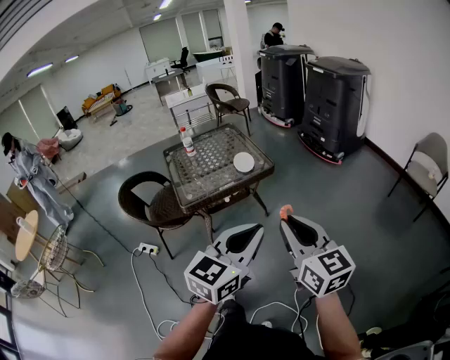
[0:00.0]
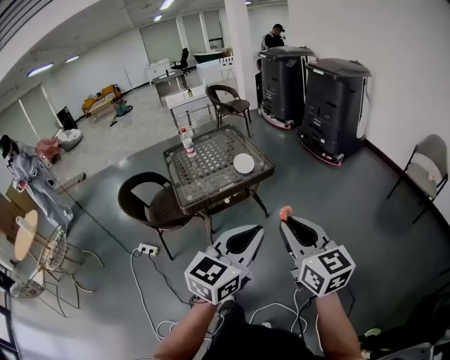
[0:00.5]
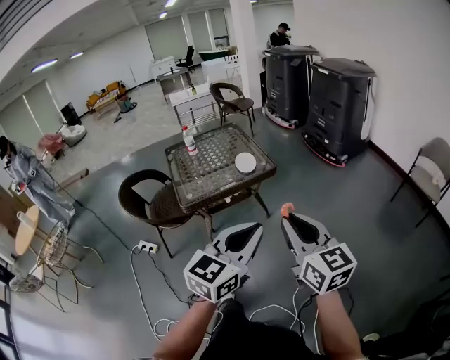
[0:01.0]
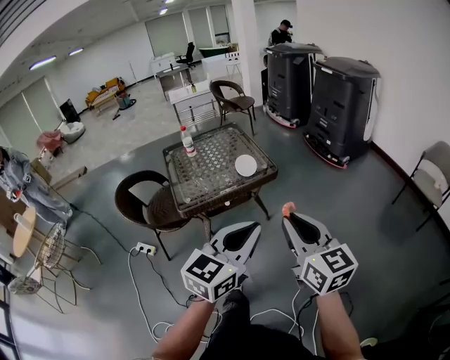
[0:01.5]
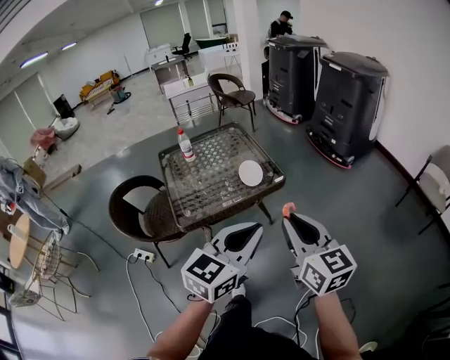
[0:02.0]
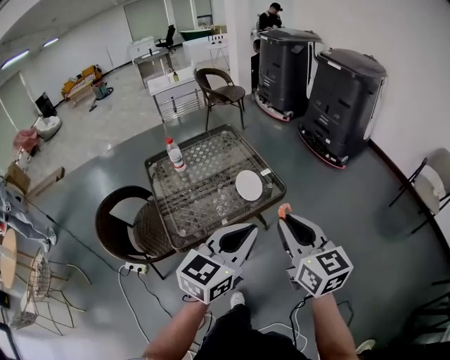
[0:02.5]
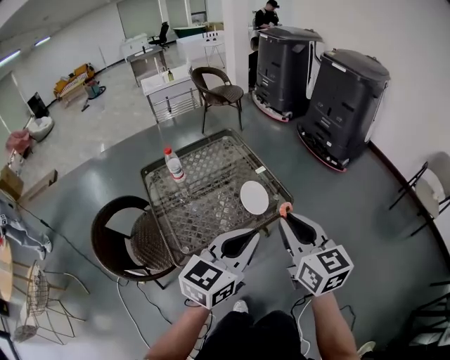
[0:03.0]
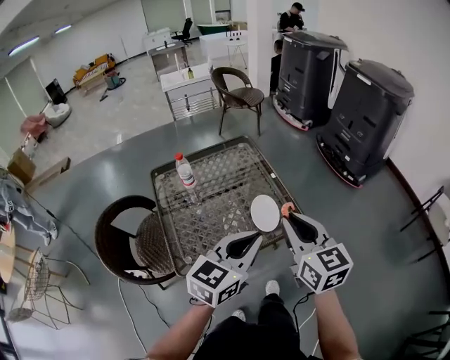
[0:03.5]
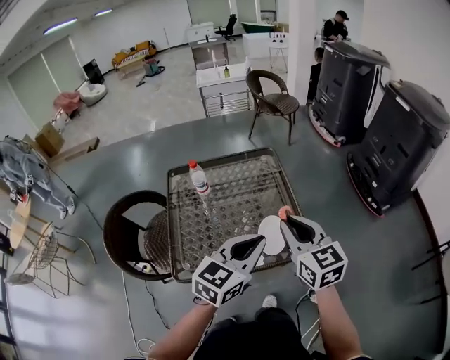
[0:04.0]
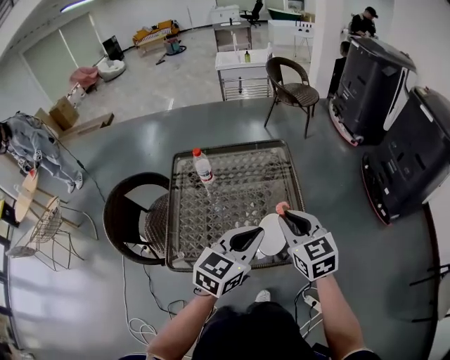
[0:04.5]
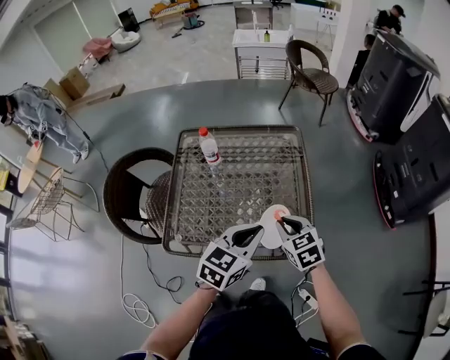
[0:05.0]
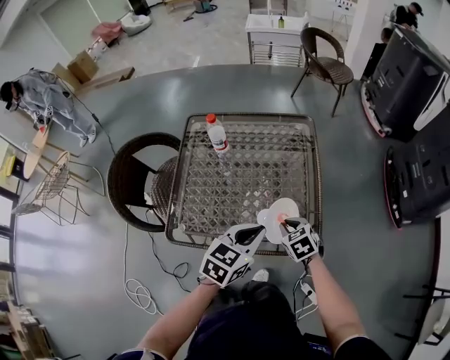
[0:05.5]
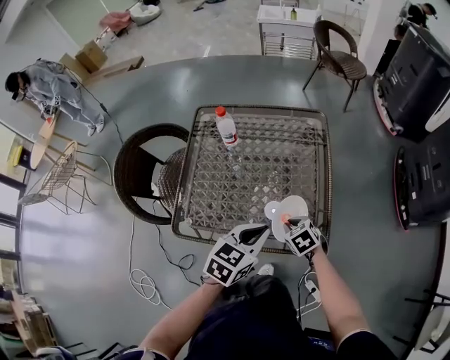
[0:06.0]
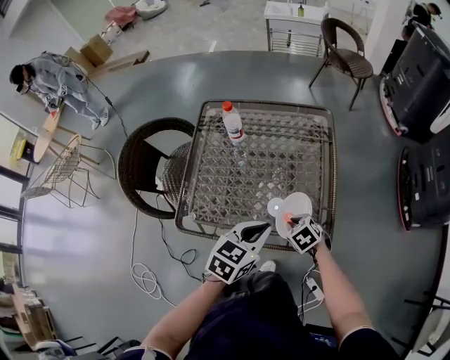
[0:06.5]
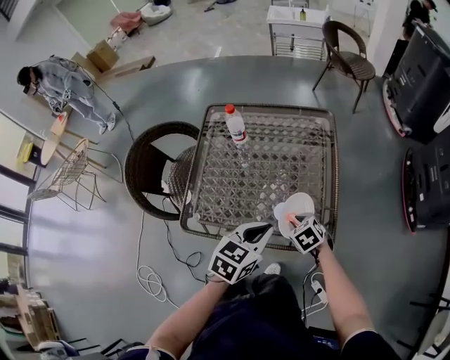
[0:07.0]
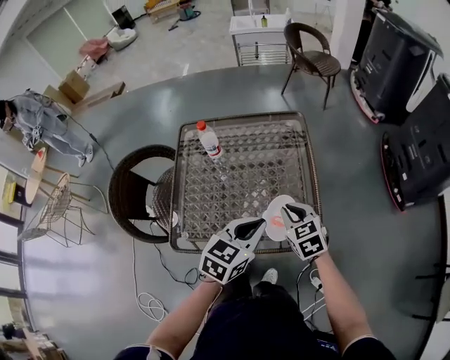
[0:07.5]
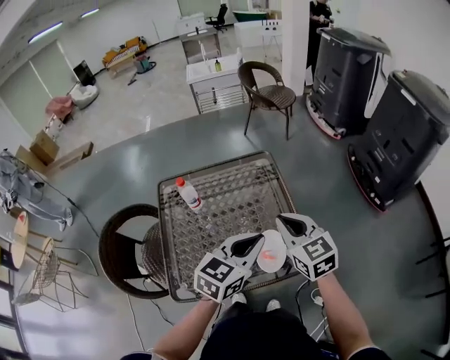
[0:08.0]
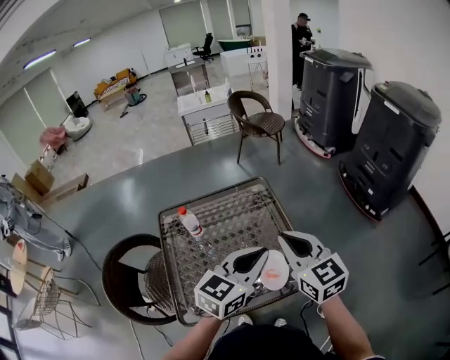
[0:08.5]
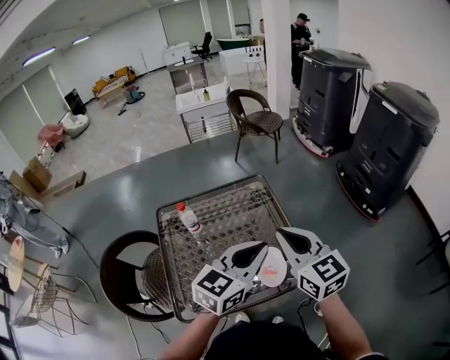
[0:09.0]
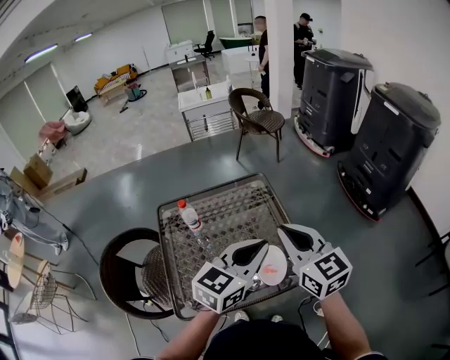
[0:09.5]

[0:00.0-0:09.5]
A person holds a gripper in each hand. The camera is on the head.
0:00.0 to 0:02.0: Both grippers move forward, approximately 15 cm.
0:02.0 to 0:04.0: Both grippers move forward, roughly 35 cm. The right gripper rotates some 20 degrees.
0:04.0 to 0:05.5: The left gripper shifts approximately 15 cm downward, and turns by some 20 degrees; the right gripper travels downward by approximately 30 cm, and points its fingers some 40 degrees further downward.
0:05.5 to 0:07.5: The right gripper goes approximately 10 cm upward.
0:07.5 to 0:09.5: The left gripper is displaced upward by some 15 cm, and swivels about 30 degrees; the right gripper goes roughly 25 cm upward, and tips its fingers upward by approximately 30 degrees.

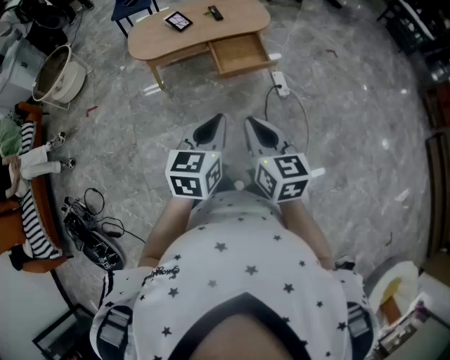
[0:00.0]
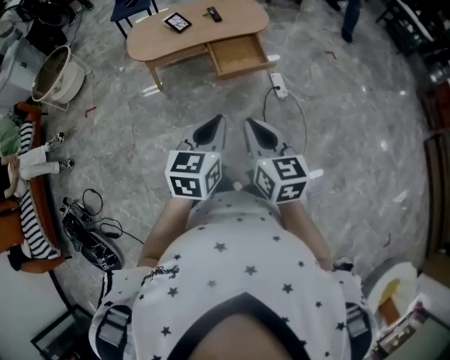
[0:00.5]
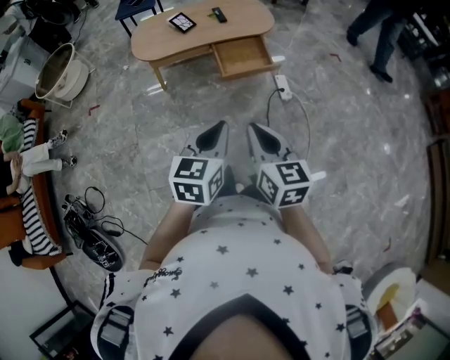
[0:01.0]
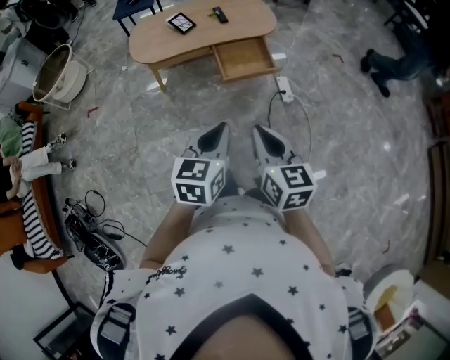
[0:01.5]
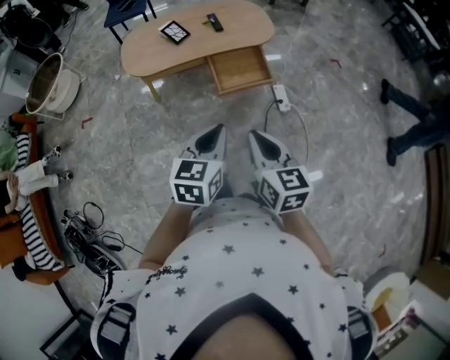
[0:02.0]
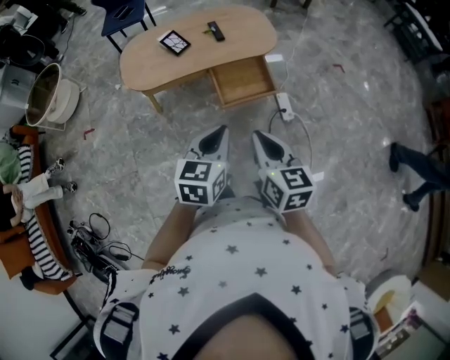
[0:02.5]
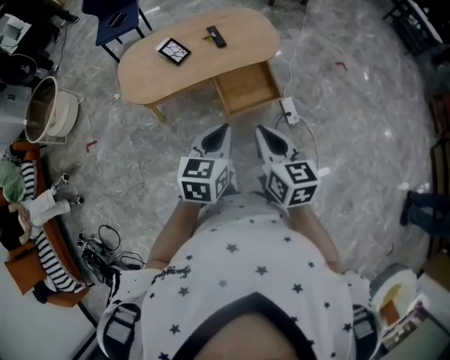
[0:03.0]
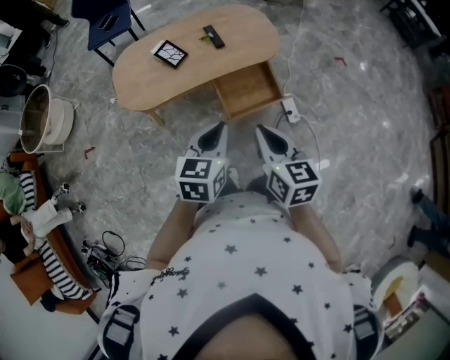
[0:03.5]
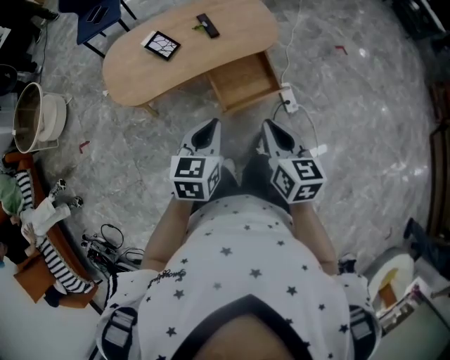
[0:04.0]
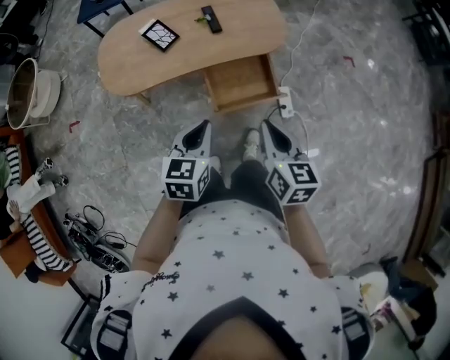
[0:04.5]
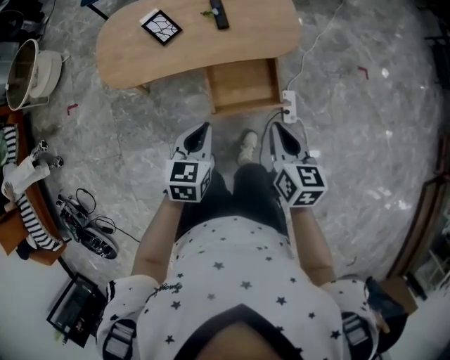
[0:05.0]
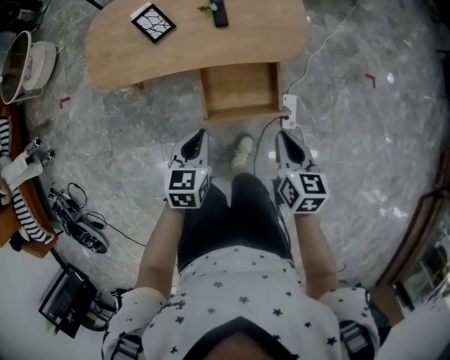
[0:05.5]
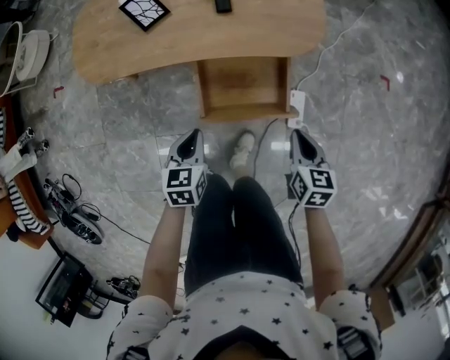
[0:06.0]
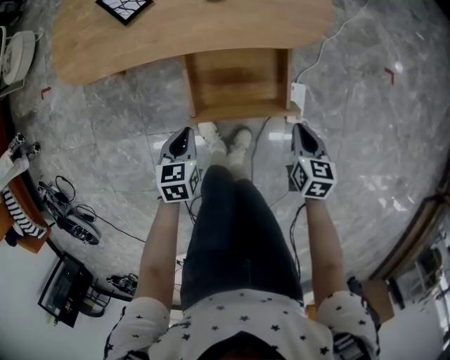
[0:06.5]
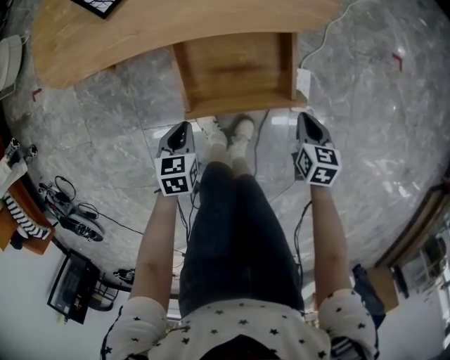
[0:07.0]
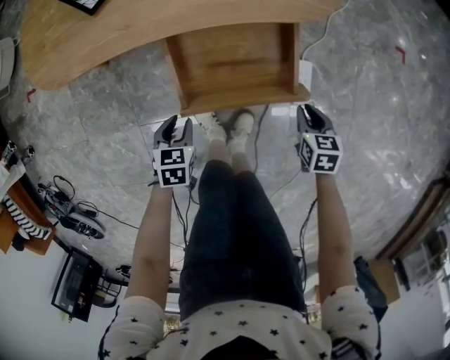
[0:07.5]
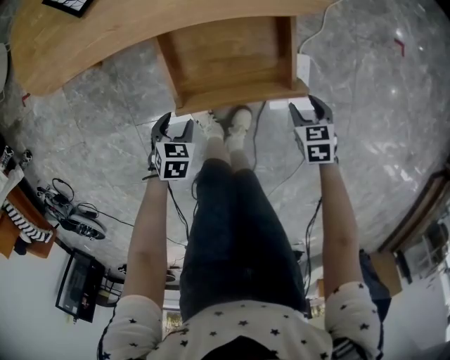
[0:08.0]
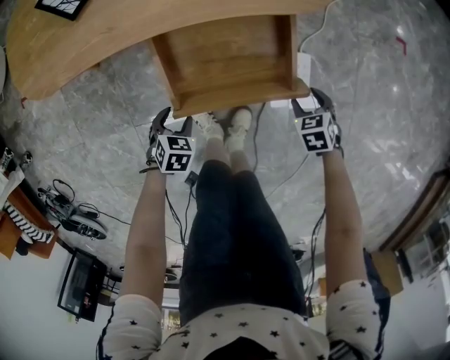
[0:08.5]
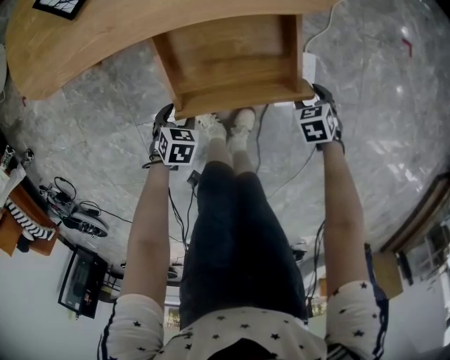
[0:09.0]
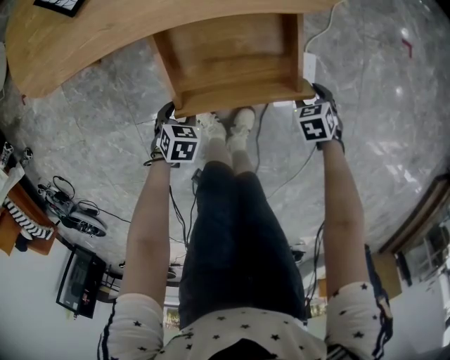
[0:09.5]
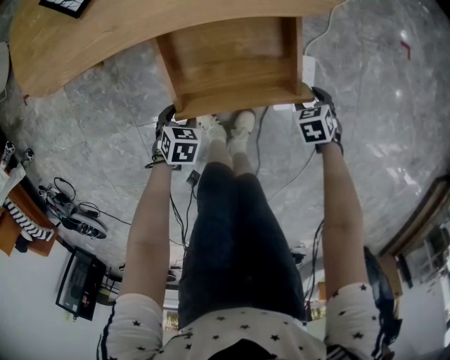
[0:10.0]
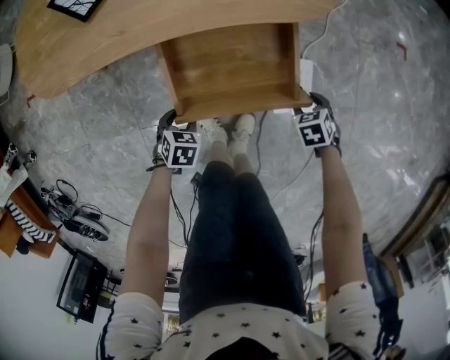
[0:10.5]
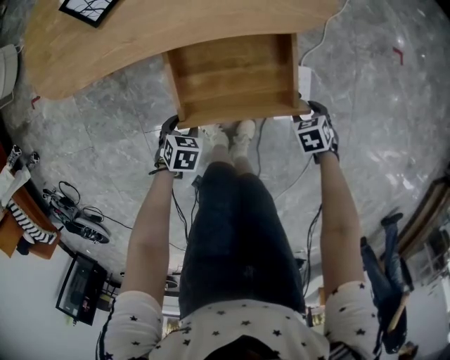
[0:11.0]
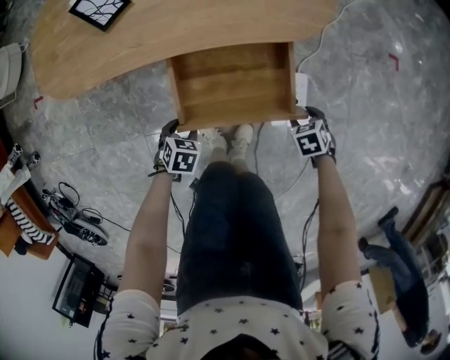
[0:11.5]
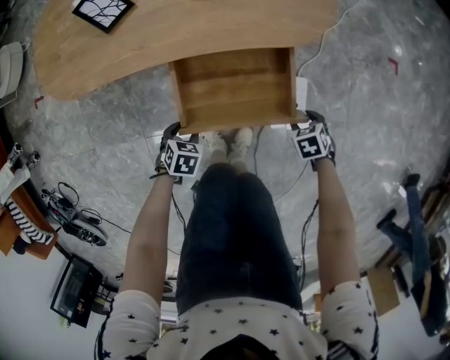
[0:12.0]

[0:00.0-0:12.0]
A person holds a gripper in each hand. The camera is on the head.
0:00.0 to 0:02.0: Both grippers move forward, approximately 15 cm.
0:02.0 to 0:04.0: Both grippers travel together forward, about 25 cm.
0:04.0 to 0:06.0: The right gripper goes about 40 cm downward, to the right and forward, and rotates approximately 20 degrees; the left gripper moves downward, some 30 cm, and turns by about 30 degrees.
0:06.0 to 0:08.0: Both grippers move downward, roughly 25 cm. The right gripper swivels some 30 degrees, and opens its fingers, while the left gripper swivels about 30 degrees, and opens.
0:08.0 to 0:10.0: The right gripper shifts roughly 5 cm downward.
0:10.0 to 0:12.0: Both grippers move upward, about 5 cm.

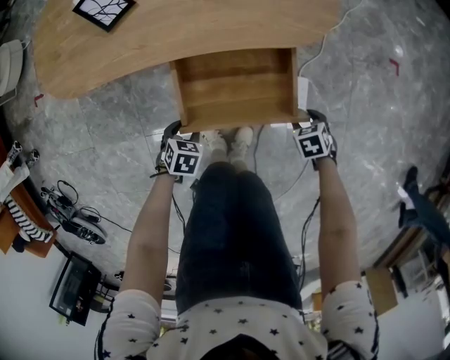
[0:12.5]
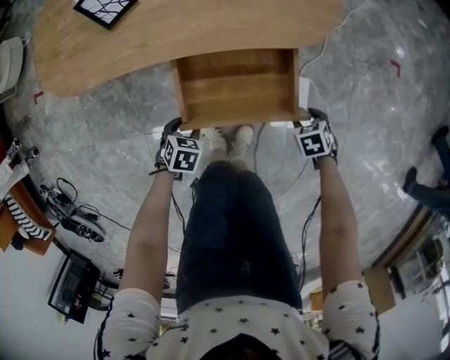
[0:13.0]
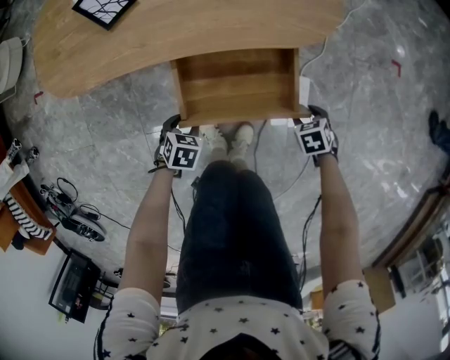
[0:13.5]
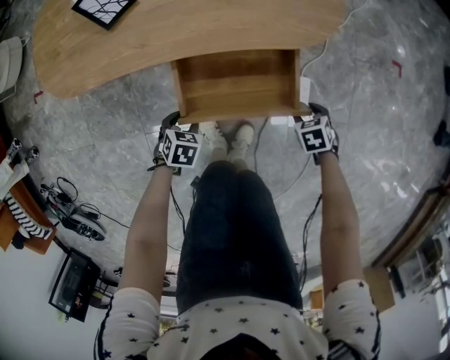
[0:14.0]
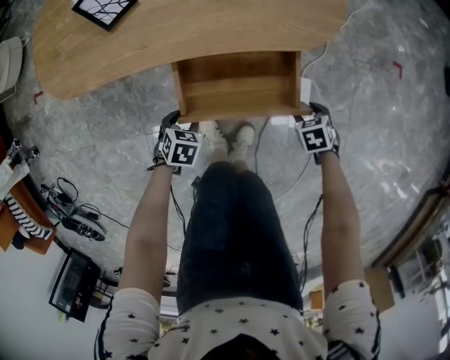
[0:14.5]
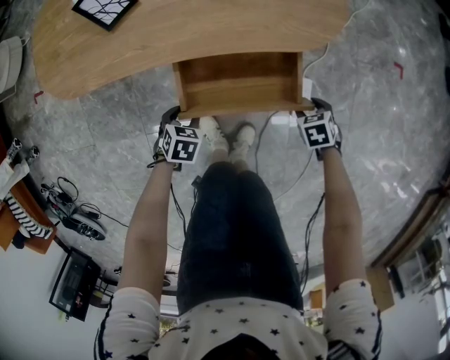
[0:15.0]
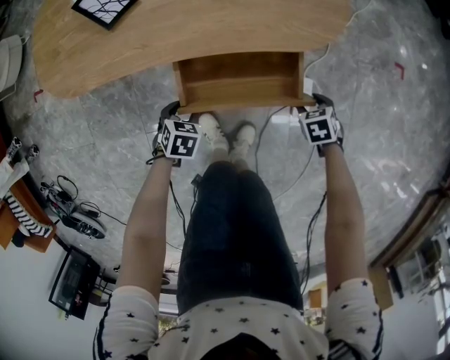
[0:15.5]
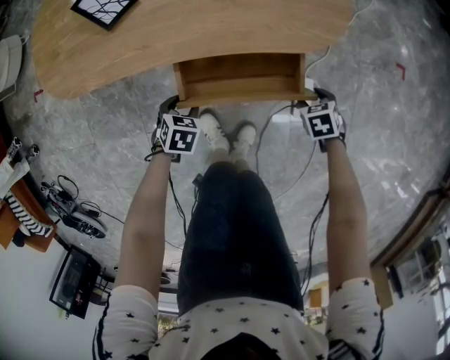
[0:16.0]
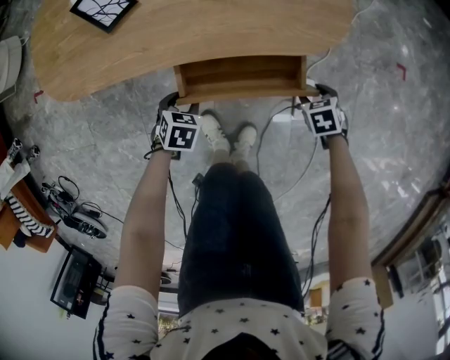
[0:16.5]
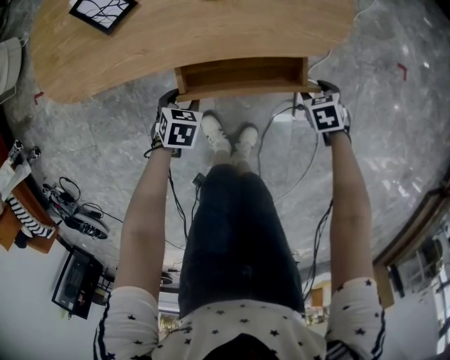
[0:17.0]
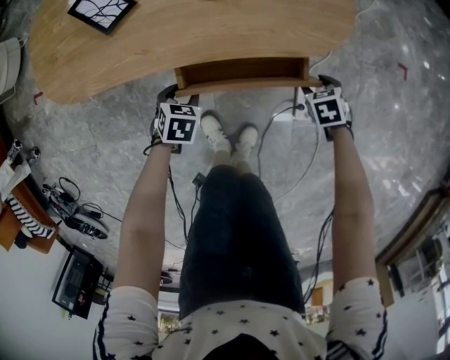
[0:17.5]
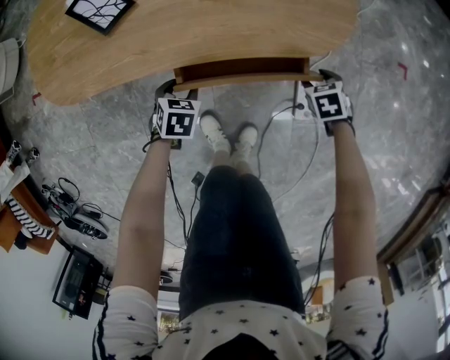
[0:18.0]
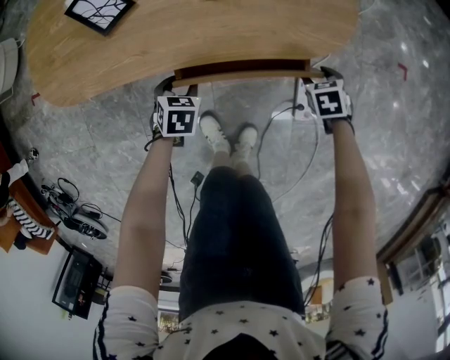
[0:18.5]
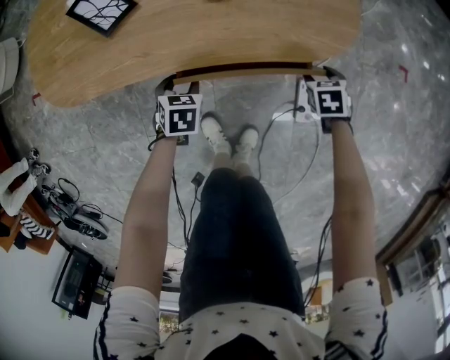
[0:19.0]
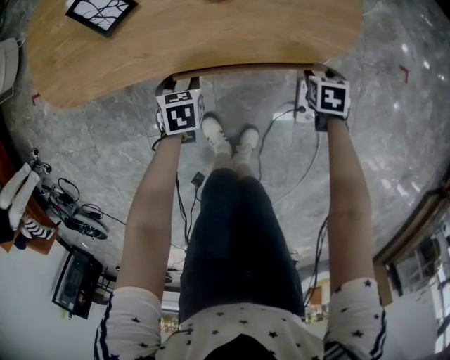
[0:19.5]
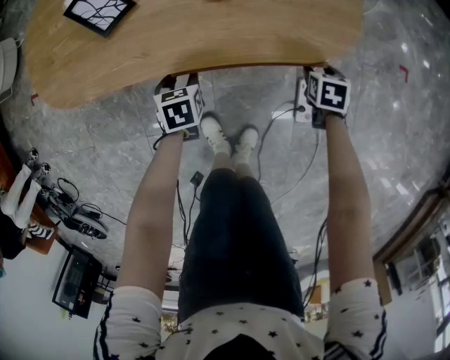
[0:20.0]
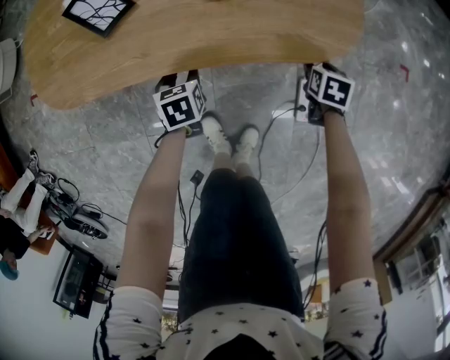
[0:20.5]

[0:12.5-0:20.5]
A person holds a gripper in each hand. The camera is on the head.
0:12.5 to 0:14.5: There are only small adjustments of the grippers.
0:14.5 to 0:16.5: The left gripper moves approximately 5 cm, while the right gripper changes place by about 5 cm.
0:16.5 to 0:18.5: The right gripper ends up roughly 5 cm from where it was. The left gripper moves about 5 cm.
0:18.5 to 0:20.5: The left gripper turns by approximately 30 degrees. The right gripper swivels approximately 30 degrees.
